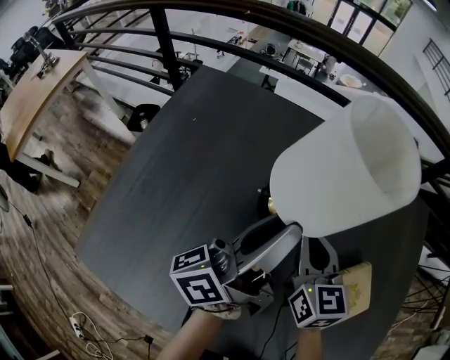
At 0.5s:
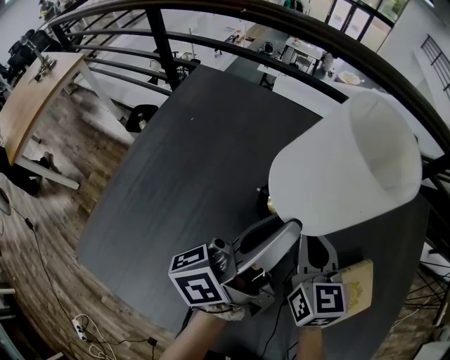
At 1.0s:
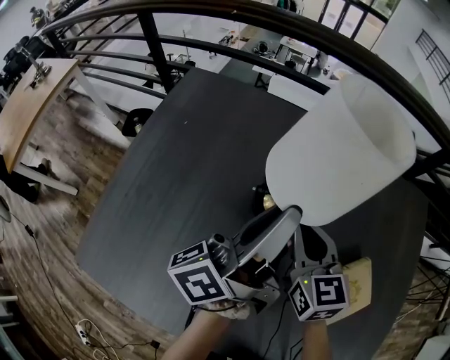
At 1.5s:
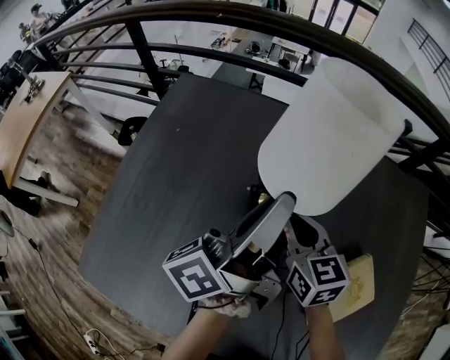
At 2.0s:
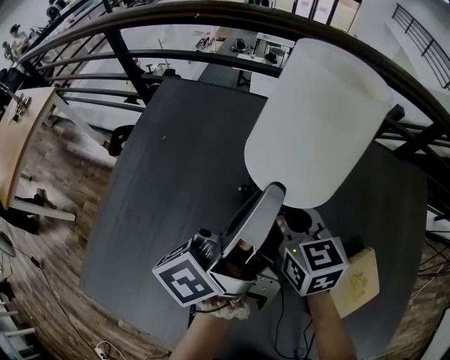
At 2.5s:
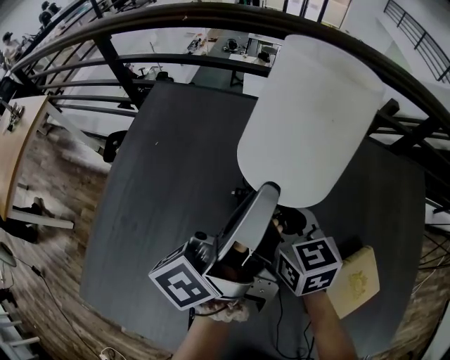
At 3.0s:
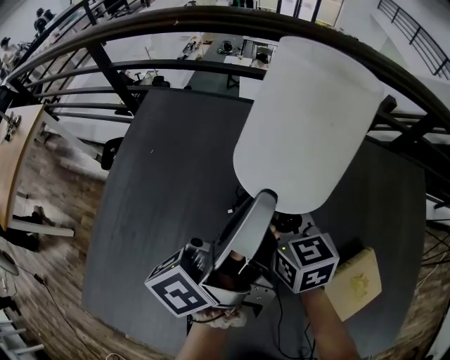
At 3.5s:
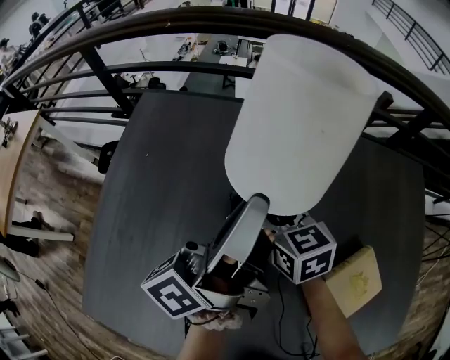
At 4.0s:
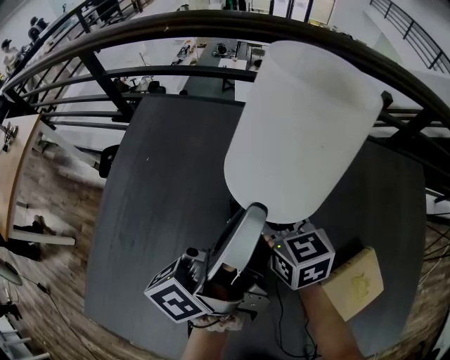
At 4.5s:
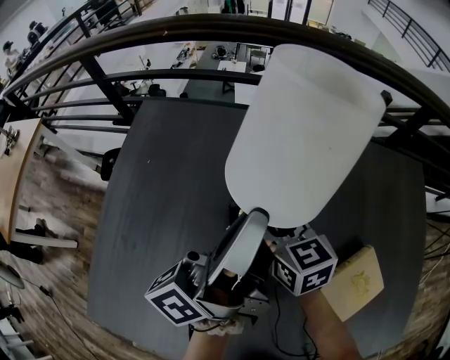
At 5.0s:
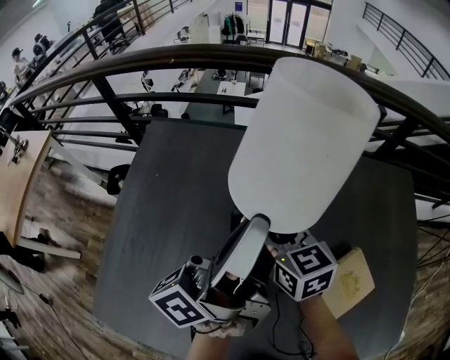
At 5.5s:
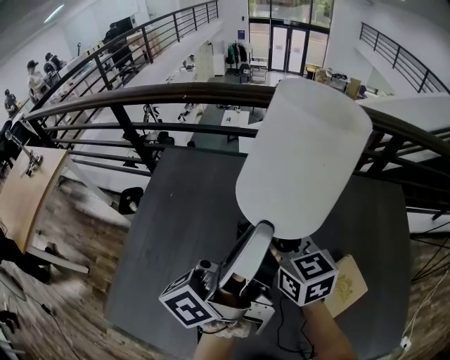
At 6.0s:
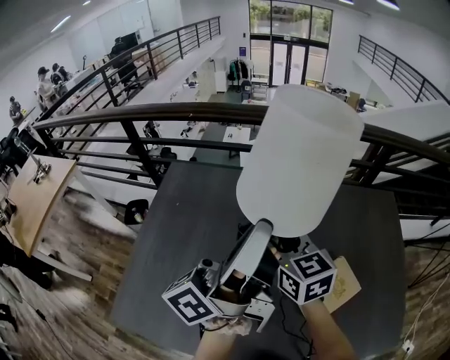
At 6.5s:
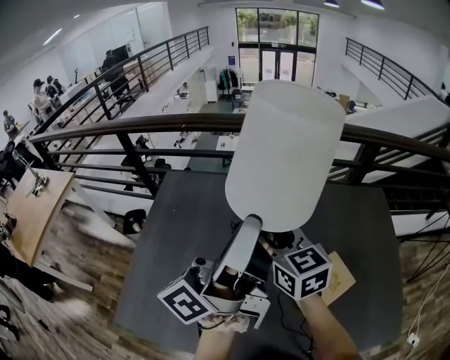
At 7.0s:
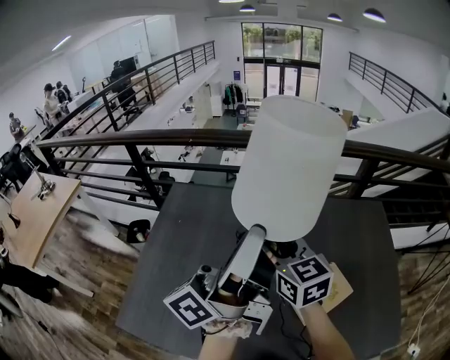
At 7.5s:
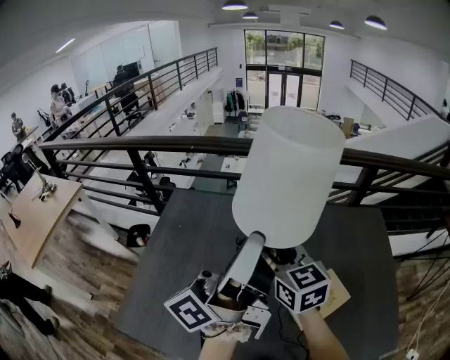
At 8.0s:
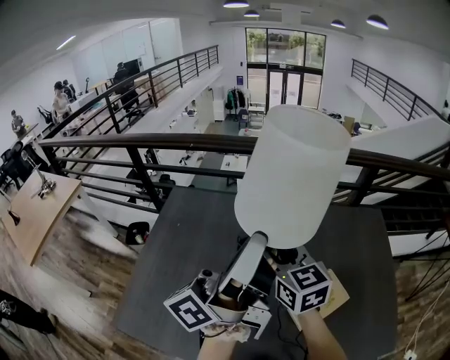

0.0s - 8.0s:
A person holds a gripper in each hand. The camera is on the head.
0.0s - 2.0s: The grippers both shift forward by about 5 cm.
2.0s - 4.0s: The right gripper opens its fingers.
4.0s - 6.0s: The grippers both shift upward and backward by some 20 cm.
6.0s - 8.0s: The two grippers go roughly 5 cm upward.

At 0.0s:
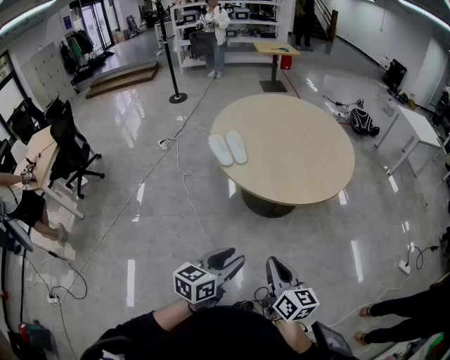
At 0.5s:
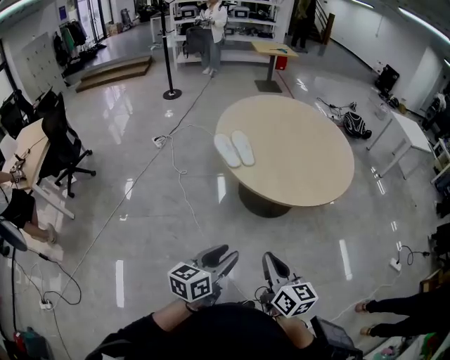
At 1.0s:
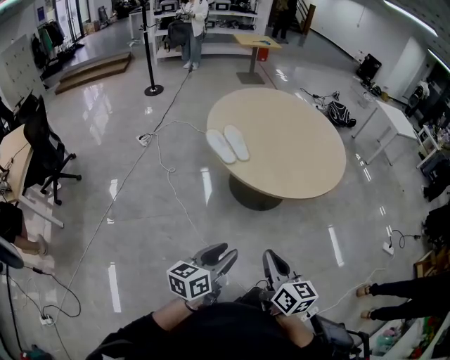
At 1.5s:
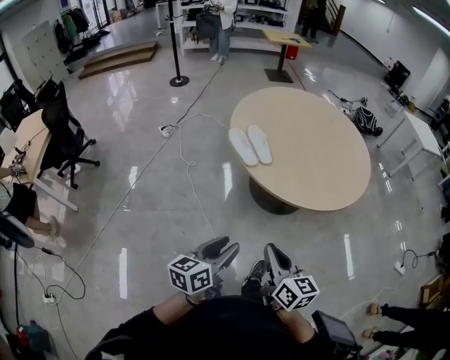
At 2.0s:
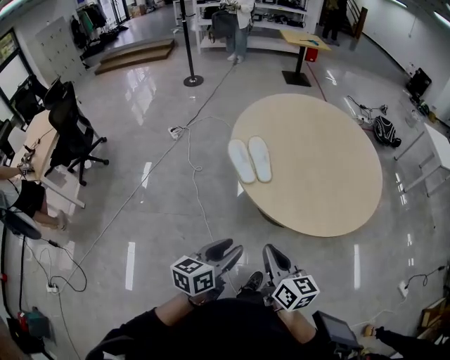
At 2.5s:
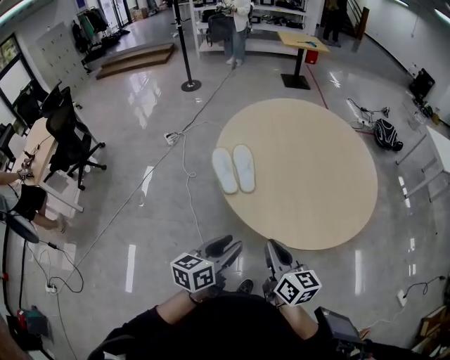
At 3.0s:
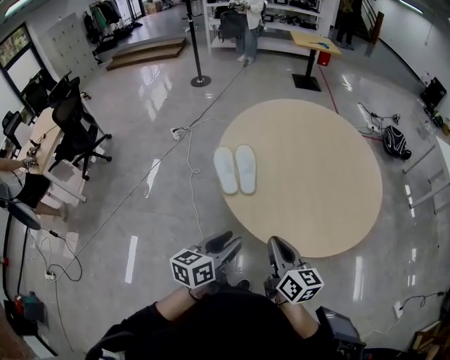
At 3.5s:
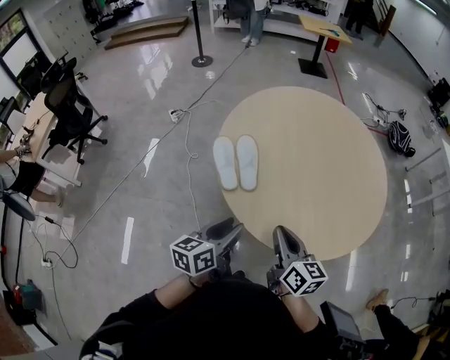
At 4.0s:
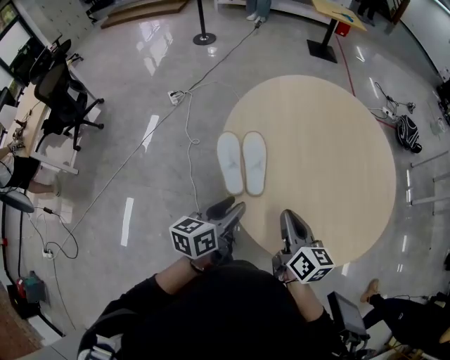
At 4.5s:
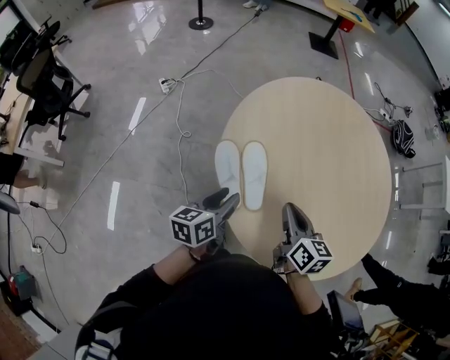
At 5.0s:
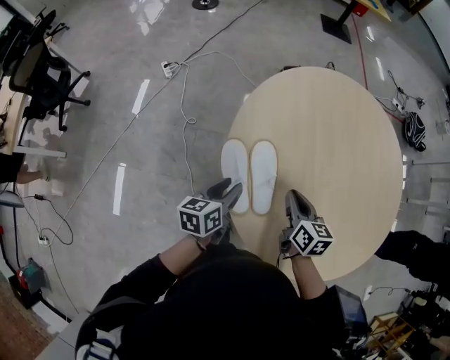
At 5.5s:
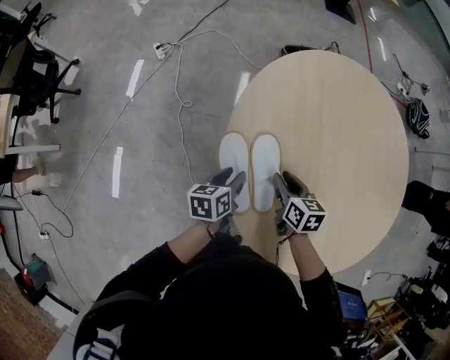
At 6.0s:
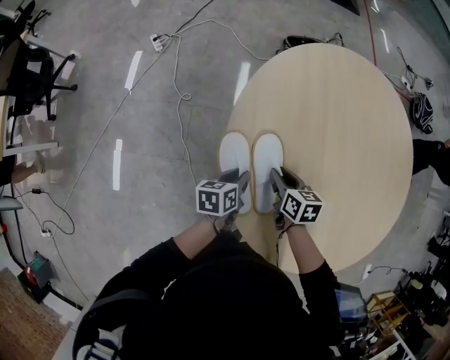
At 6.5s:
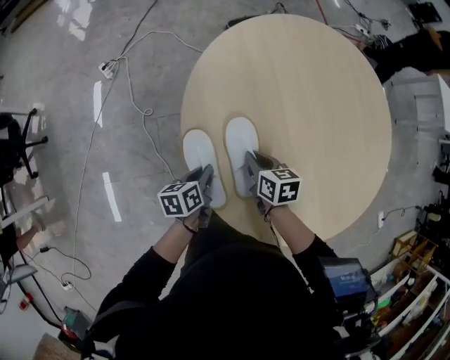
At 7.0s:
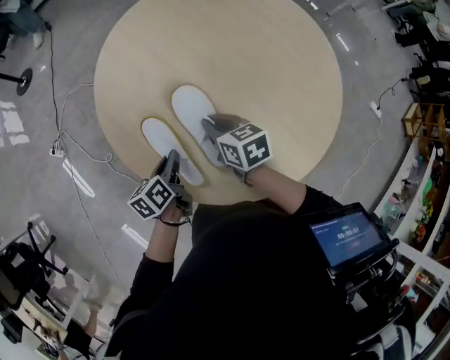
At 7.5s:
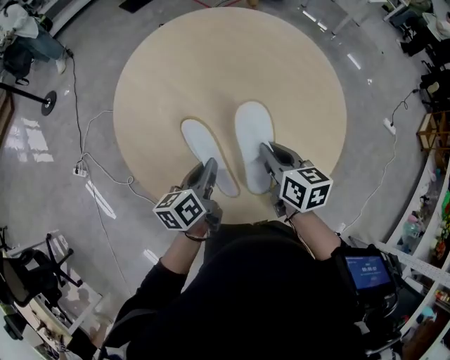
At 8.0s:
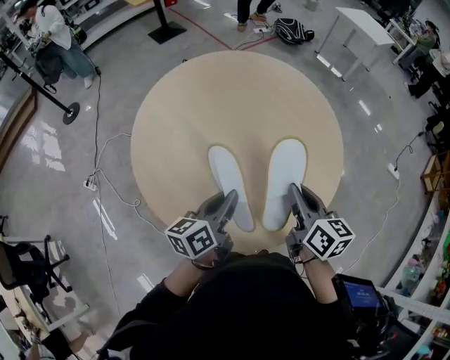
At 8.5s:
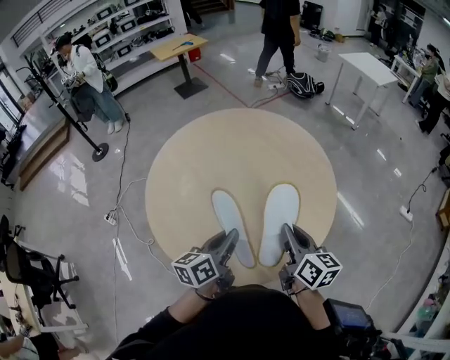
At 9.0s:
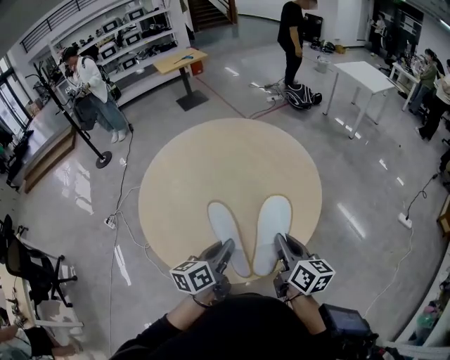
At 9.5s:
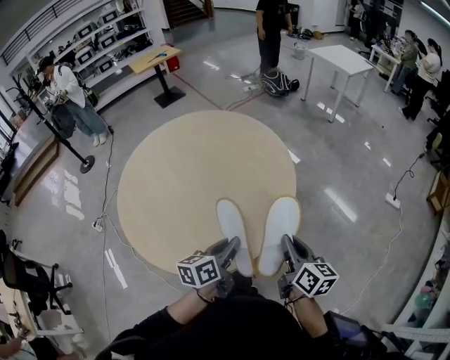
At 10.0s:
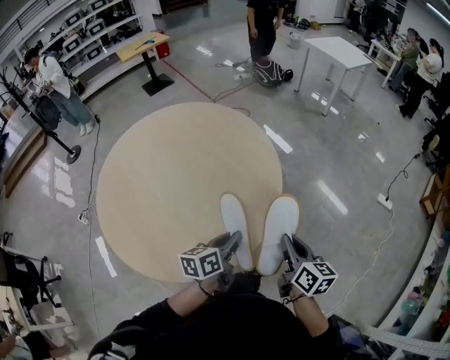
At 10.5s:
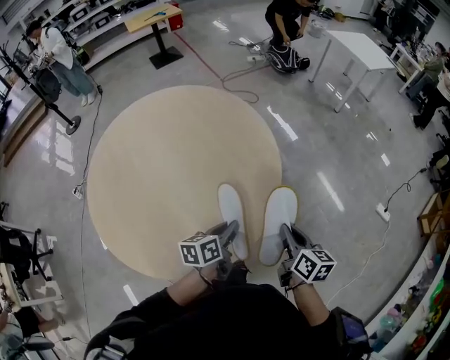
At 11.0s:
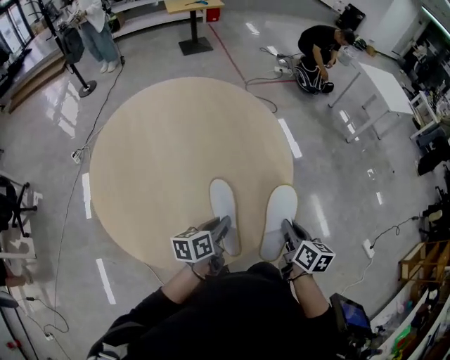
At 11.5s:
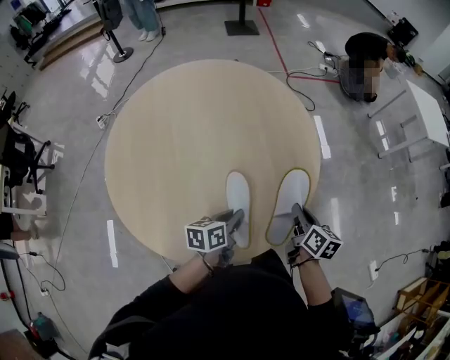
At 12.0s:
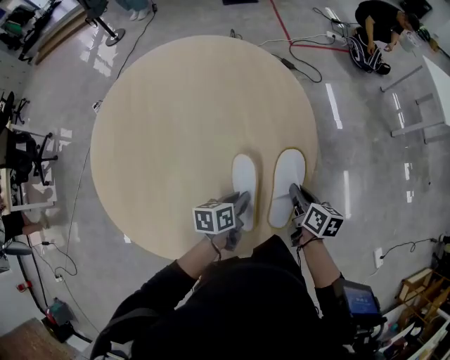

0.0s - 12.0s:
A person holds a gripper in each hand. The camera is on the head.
0.0s - 2.0s: Both grippers move forward and to the left, some 25 cm.
2.0s - 4.0s: The grippers both shift forward by about 35 cm.
4.0s - 6.0s: The left gripper is displaced downward and forward by approximately 35 cm, and swivels about 30 degrees. The right gripper goes approximately 40 cm forward, downward and to the left, changes its angle by about 30 degrees, and opens up.
6.0s - 8.0s: The left gripper changes place by some 40 cm, and tilts its fingers some 30 degrees upward. Meanwhile the right gripper shifts by roughly 50 cm, swivels about 60 degrees, and closes.
8.0s - 10.0s: The two grippers travel together, to the right, approximately 40 cm.
10.0s - 12.0s: The left gripper changes place by approximately 35 cm, and turns by roughly 30 degrees. Meanwhile the right gripper ends up about 40 cm from where it was, and changes its angle by about 40 degrees.

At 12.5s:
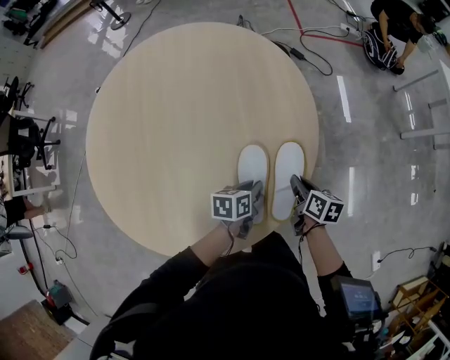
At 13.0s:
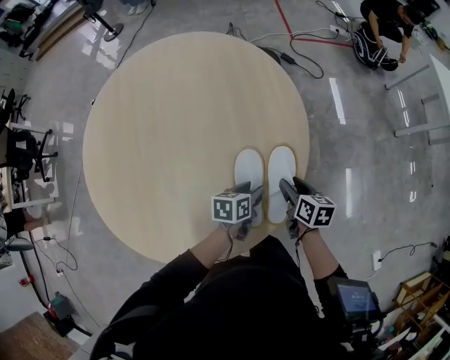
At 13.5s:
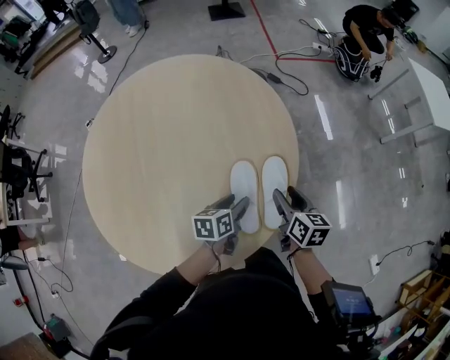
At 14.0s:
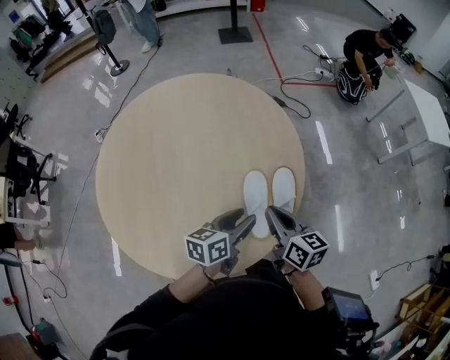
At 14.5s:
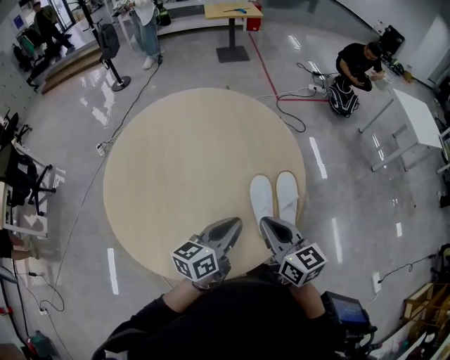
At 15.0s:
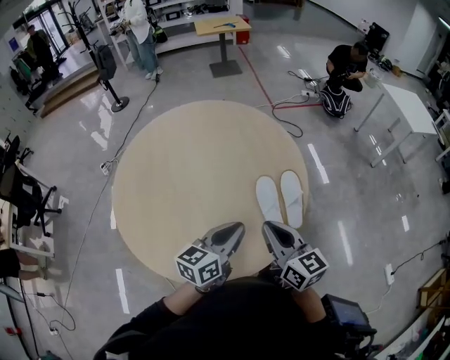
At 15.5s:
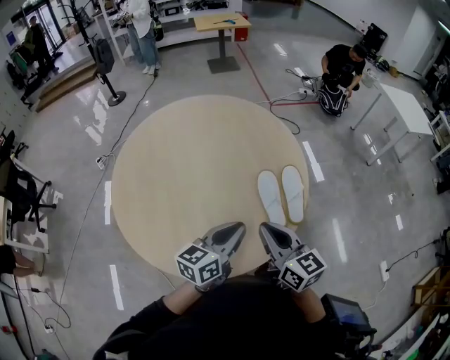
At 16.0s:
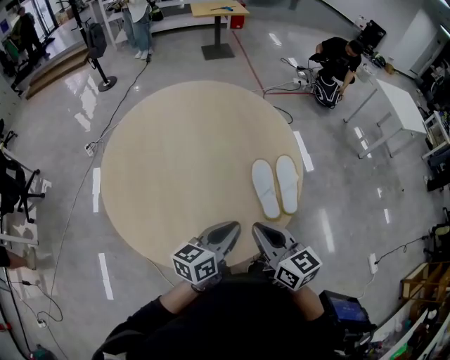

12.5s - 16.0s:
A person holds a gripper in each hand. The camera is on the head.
12.5s - 14.5s: Both grippers travel together upward, backward and to the left, some 35 cm. The left gripper points its fingers approximately 30 degrees further upward, and opens and closes again. Meanwhile the right gripper swivels about 40 degrees, and opens, then closes once more.
14.5s - 16.0s: The left gripper travels backward by approximately 10 cm. The right gripper is displaced backward and to the left by about 10 cm.

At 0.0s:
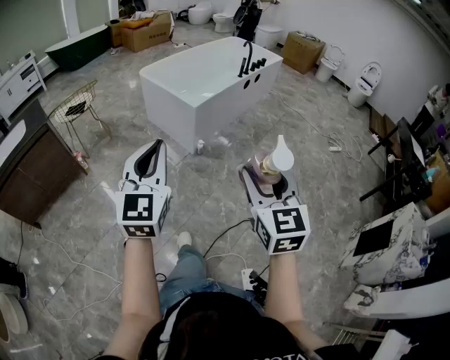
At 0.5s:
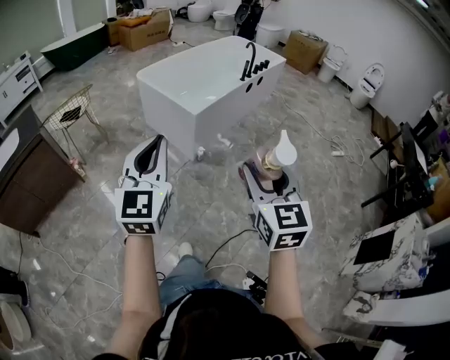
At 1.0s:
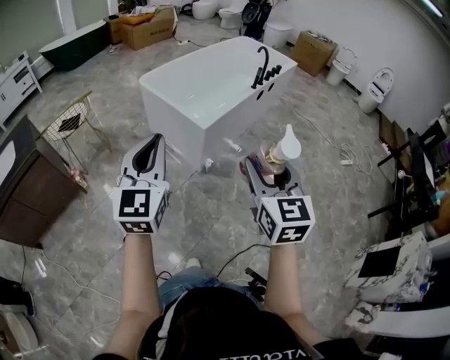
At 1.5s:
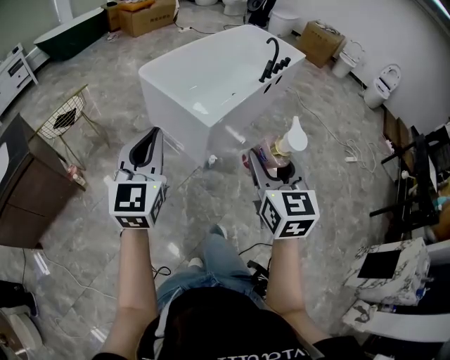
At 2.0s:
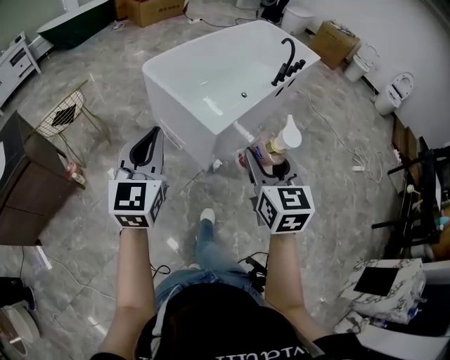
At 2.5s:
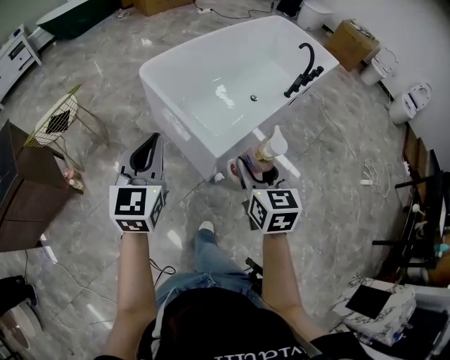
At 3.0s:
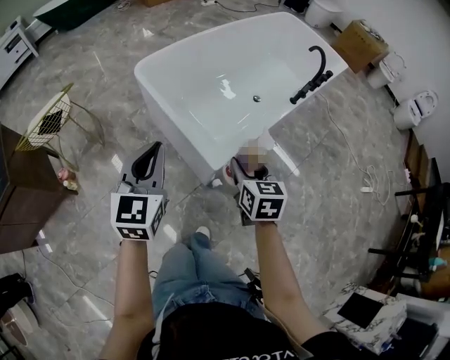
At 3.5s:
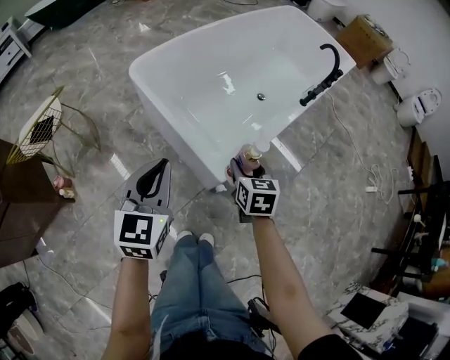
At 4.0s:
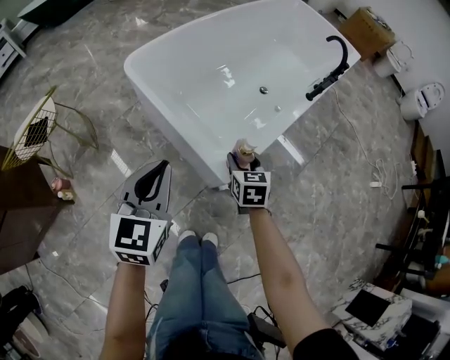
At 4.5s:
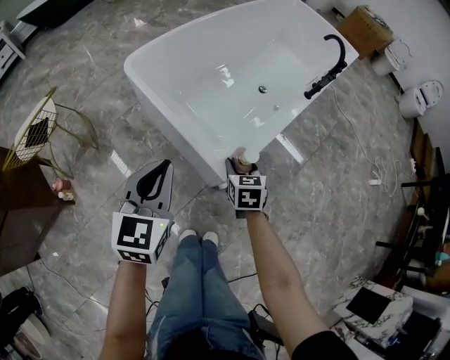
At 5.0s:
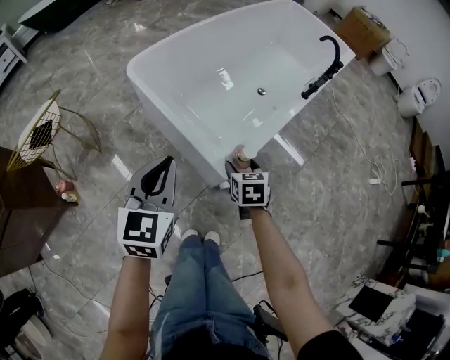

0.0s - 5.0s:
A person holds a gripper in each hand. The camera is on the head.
0.0s - 2.5s: The pair of grippers is taken forward, roughly 70 cm. The right gripper rotates roughly 20 degrees.
2.5s - 5.0s: The right gripper moves downward and forward, about 30 cm, and rotates roughly 30 degrees, while the left gripper moves downward and forward, some 20 cm.
